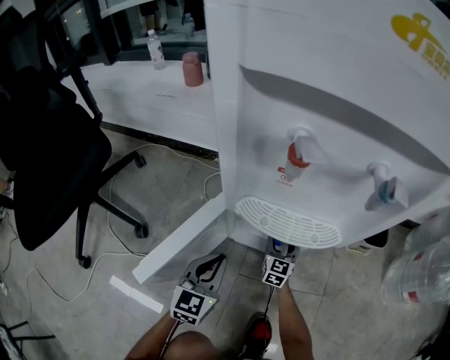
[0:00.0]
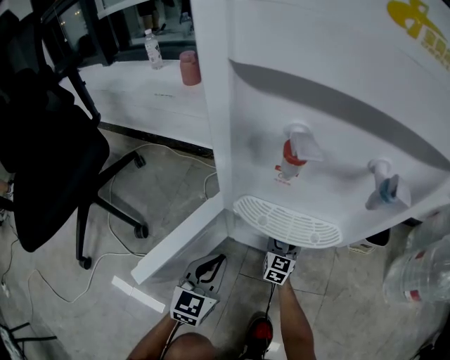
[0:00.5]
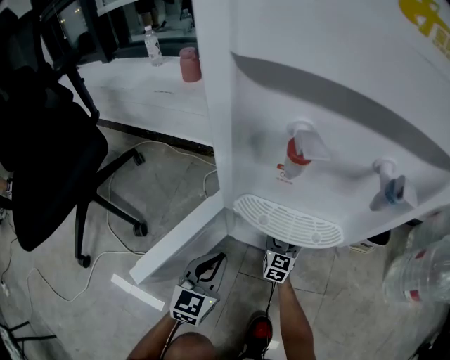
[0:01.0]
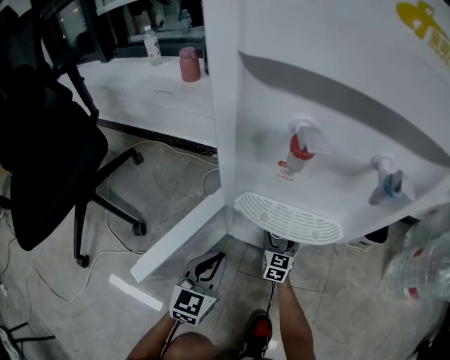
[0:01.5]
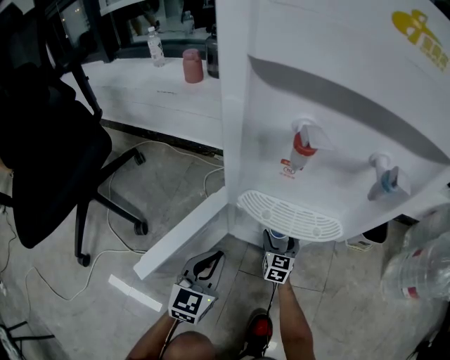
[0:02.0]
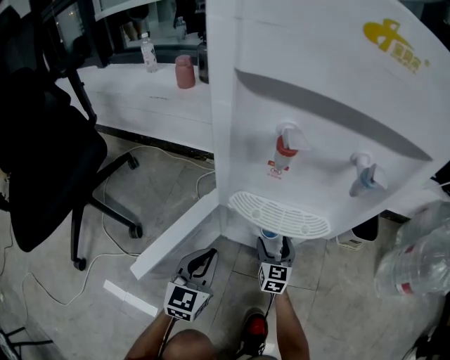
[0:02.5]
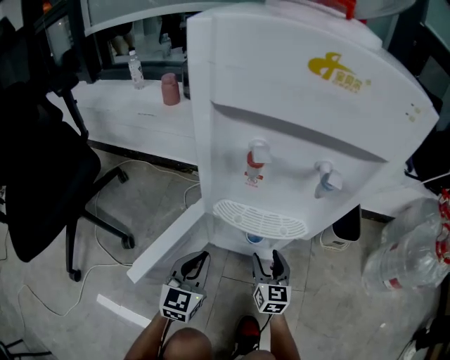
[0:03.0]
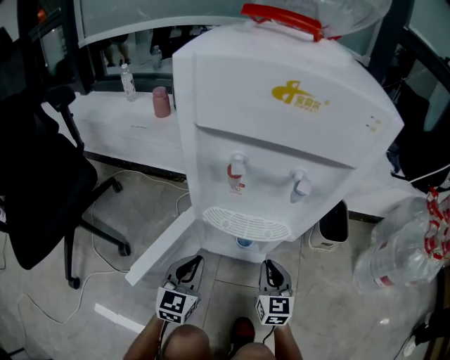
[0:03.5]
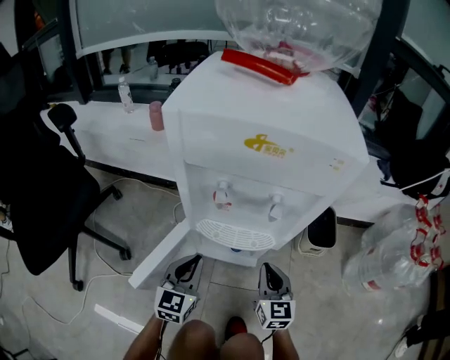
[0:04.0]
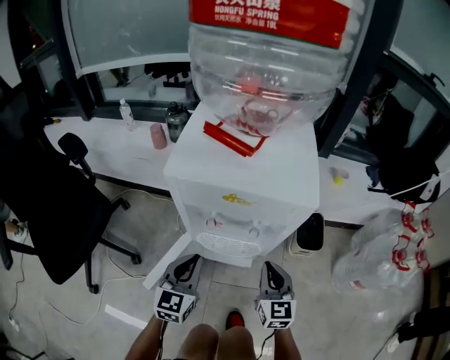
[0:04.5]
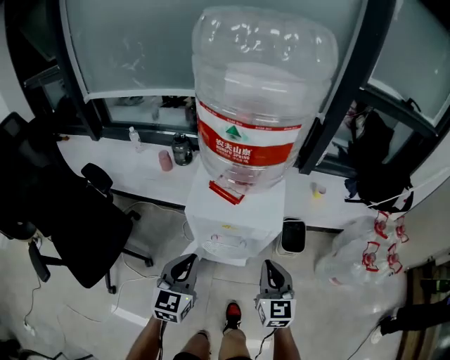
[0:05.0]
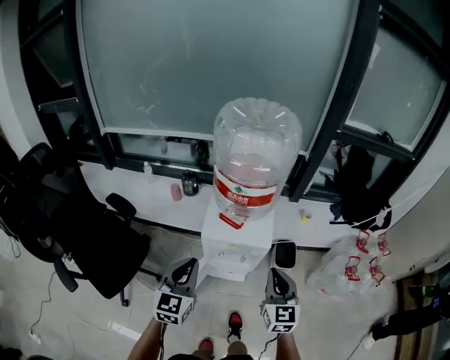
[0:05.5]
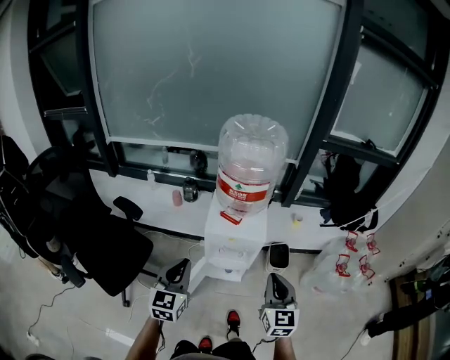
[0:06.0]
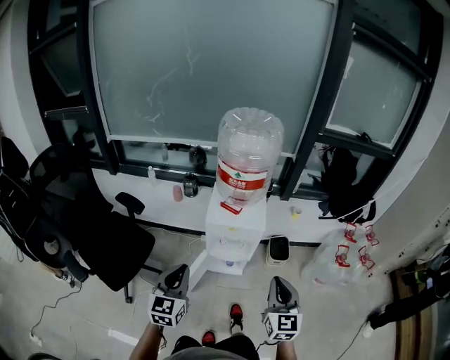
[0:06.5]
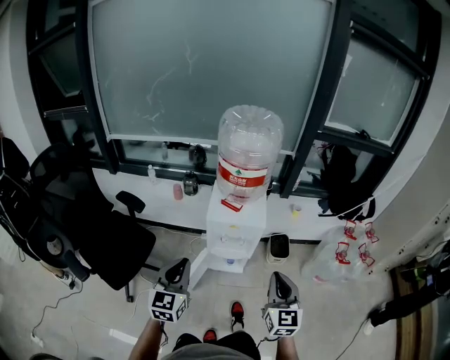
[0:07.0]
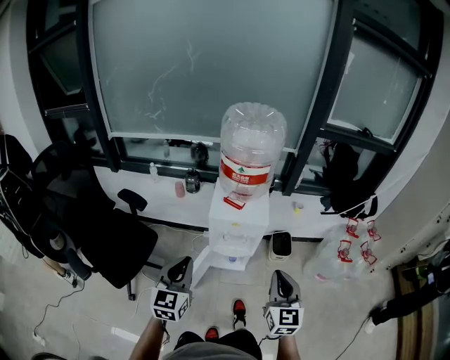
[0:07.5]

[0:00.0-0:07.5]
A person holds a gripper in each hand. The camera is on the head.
0:00.0 to 0:02.0: The grippers make only small movements.
0:02.0 to 0:04.0: The left gripper shifts roughly 15 cm upward. Meanwhile the right gripper shifts some 30 cm upward and backward, and closes up.
0:04.0 to 0:05.5: The grippers both shift upward by some 60 cm.
0:05.5 to 0:07.5: The left gripper moves backward, approximately 15 cm. Meanwhile the right gripper moves backward and upward, some 20 cm.

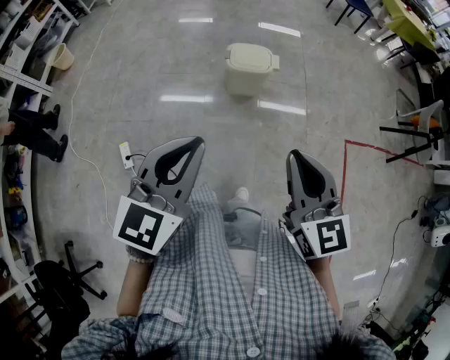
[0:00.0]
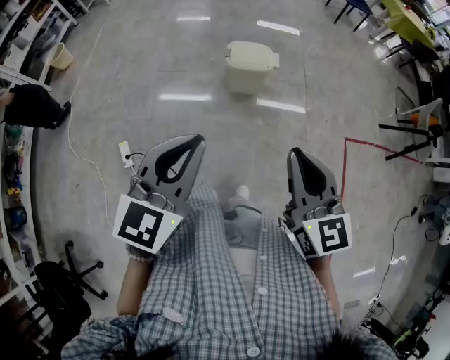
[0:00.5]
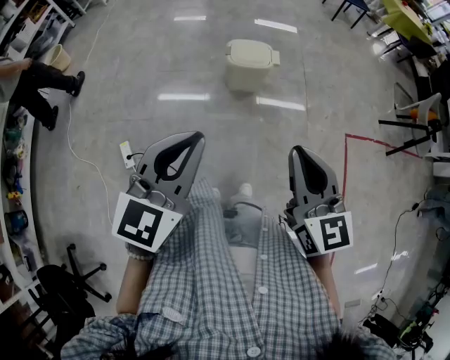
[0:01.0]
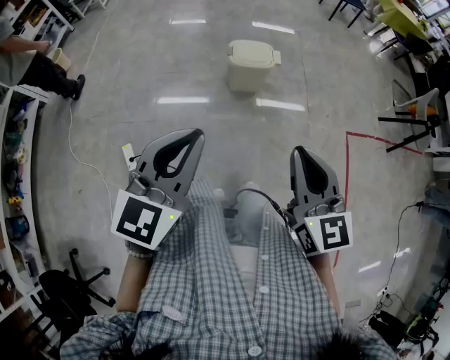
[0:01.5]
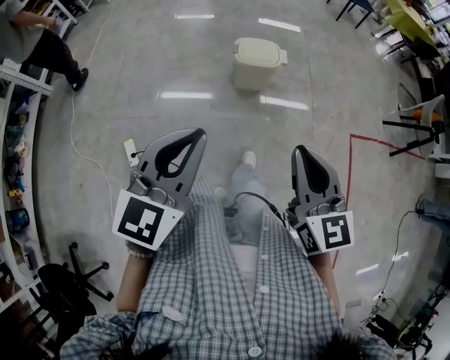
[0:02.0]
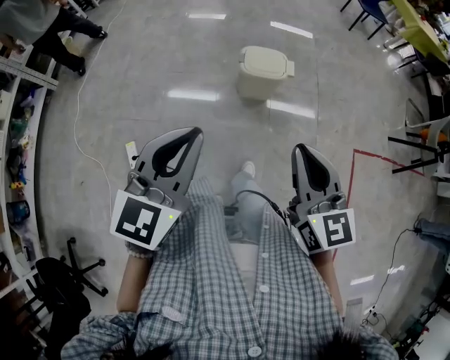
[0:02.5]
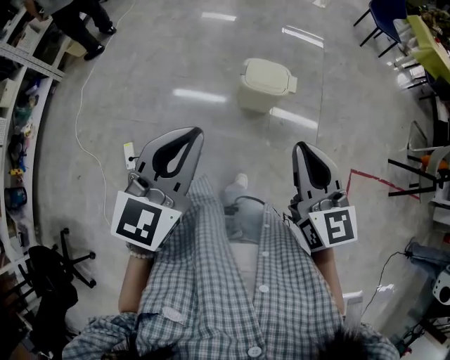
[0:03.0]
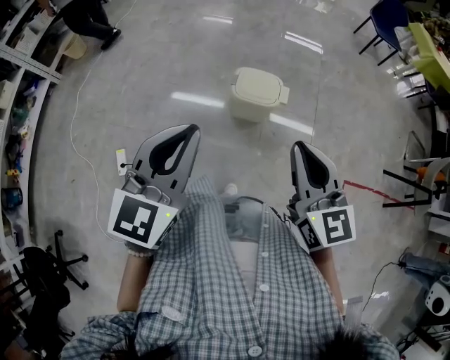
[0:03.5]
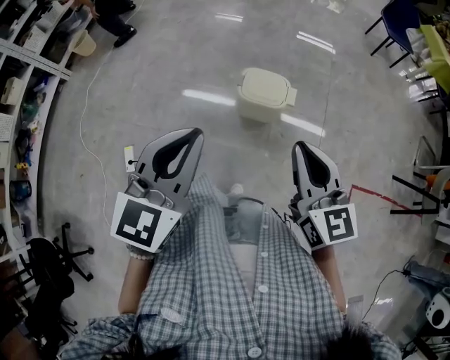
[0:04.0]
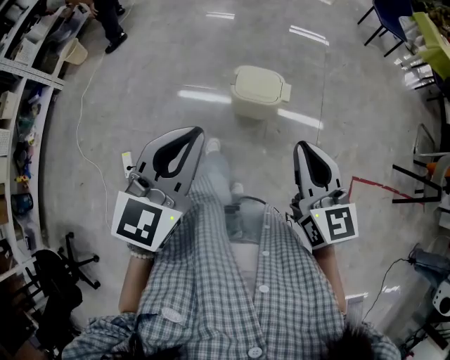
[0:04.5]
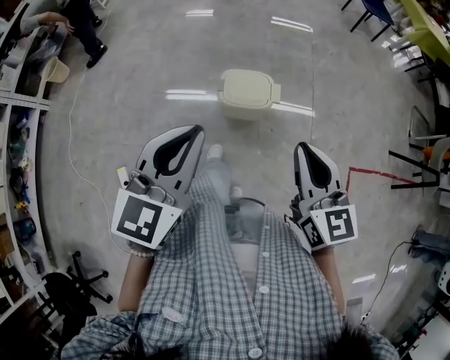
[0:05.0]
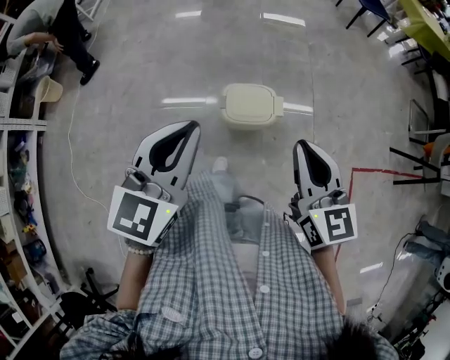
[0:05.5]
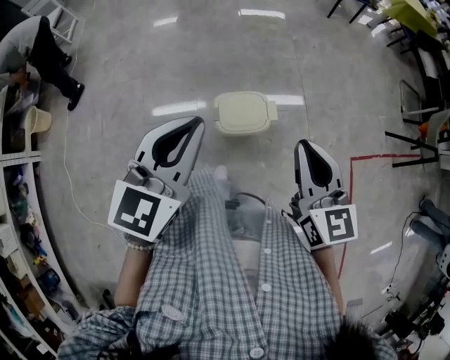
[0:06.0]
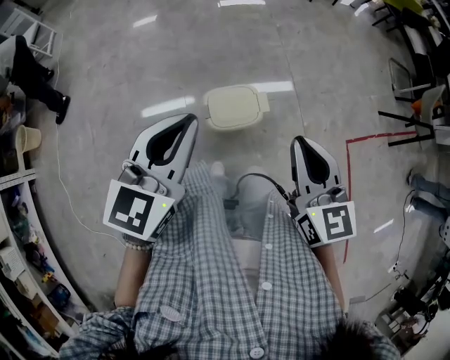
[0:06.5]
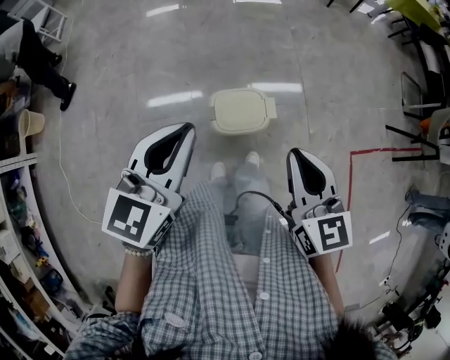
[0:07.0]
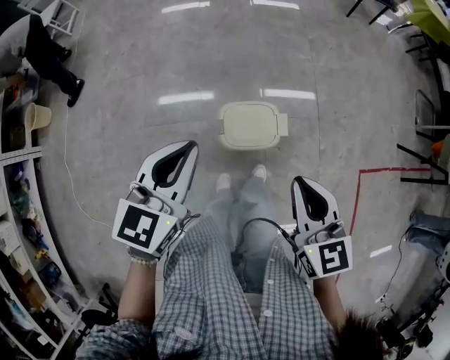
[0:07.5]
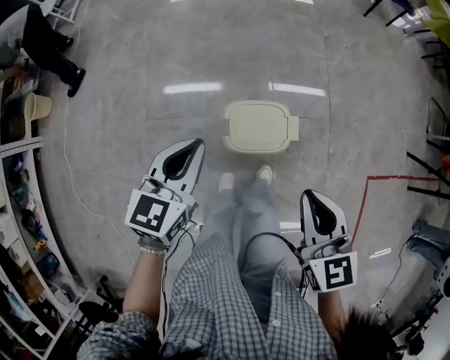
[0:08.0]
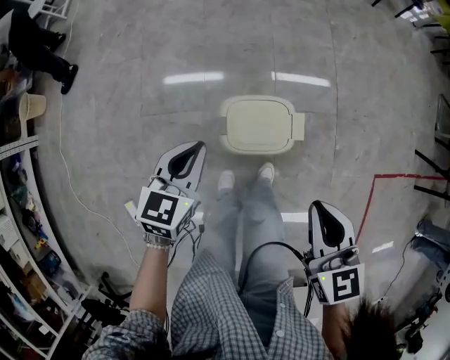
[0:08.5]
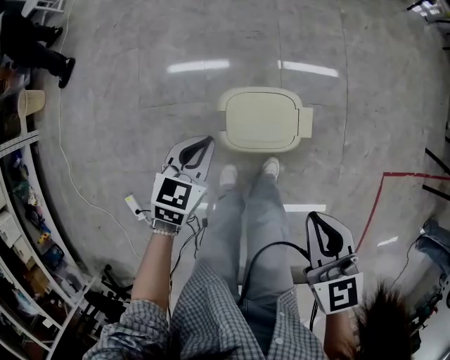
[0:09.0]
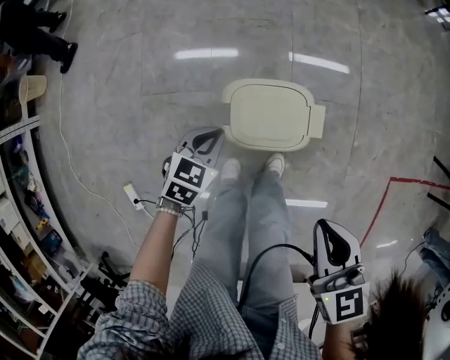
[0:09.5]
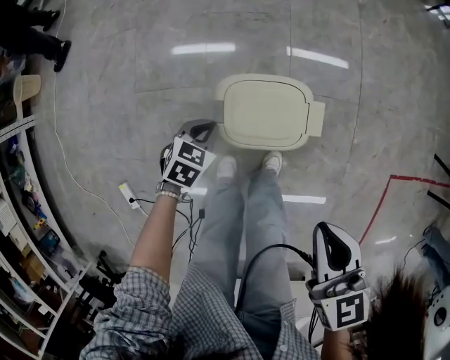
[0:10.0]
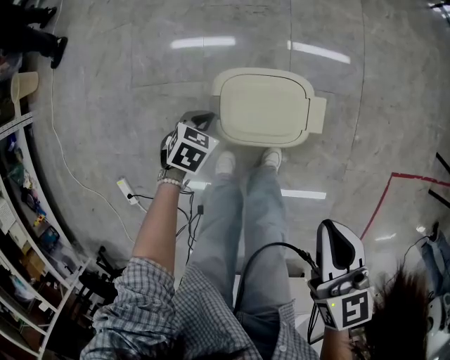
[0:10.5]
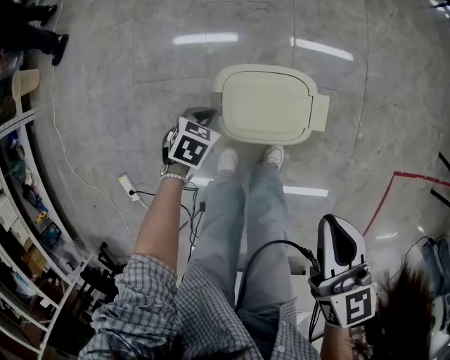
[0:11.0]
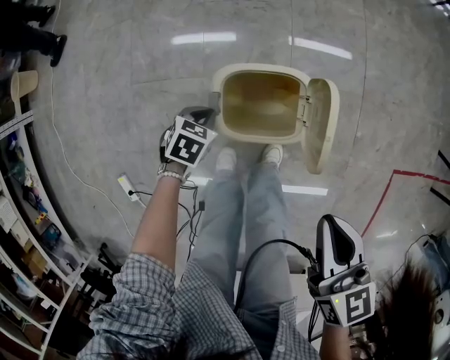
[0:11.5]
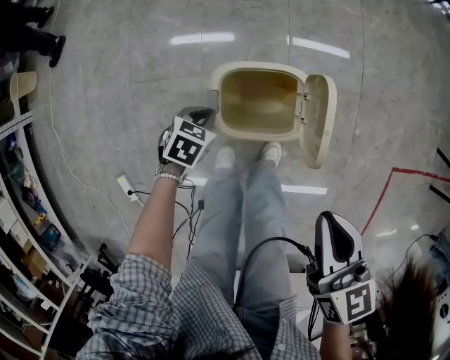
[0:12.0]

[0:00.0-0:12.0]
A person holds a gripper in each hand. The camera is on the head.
0:00.0 to 0:02.0: The left gripper goes roughly 5 cm to the left.
0:02.0 to 0:04.0: The two grippers go roughly 25 cm forward and to the right.
0:04.0 to 0:06.0: The grippers both shift forward by approximately 20 cm. The left gripper turns by some 20 degrees. The right gripper changes its angle by about 20 degrees.
0:06.0 to 0:08.0: The left gripper travels downward and forward by about 20 cm, while the right gripper moves downward and forward, roughly 15 cm.
0:08.0 to 0:10.0: The right gripper heads downward, covering approximately 15 cm, while the left gripper moves downward, roughly 35 cm, and tips its fingers downward by roughly 30 degrees.
0:10.0 to 0:12.0: There are only small adjustments of the grippers.

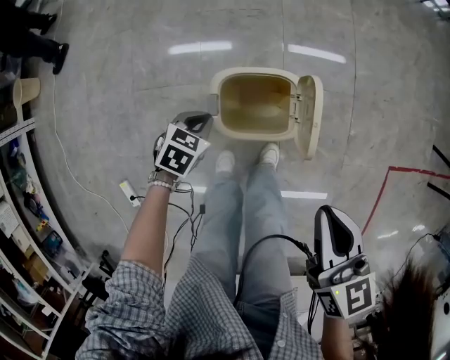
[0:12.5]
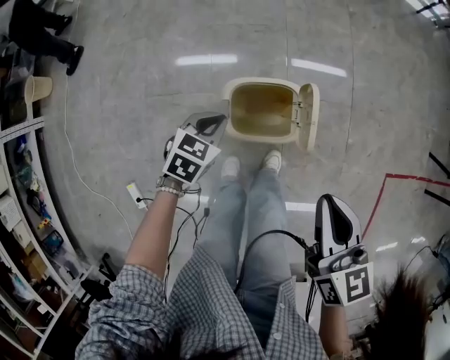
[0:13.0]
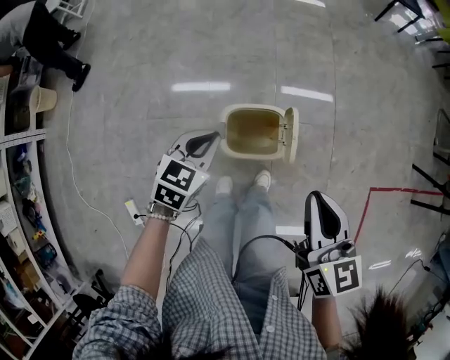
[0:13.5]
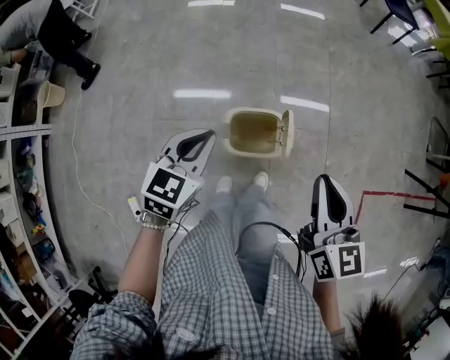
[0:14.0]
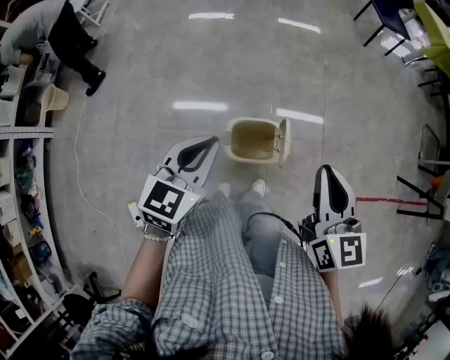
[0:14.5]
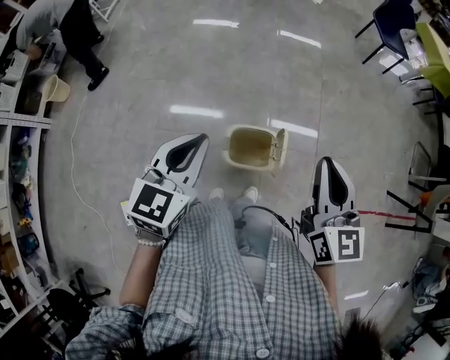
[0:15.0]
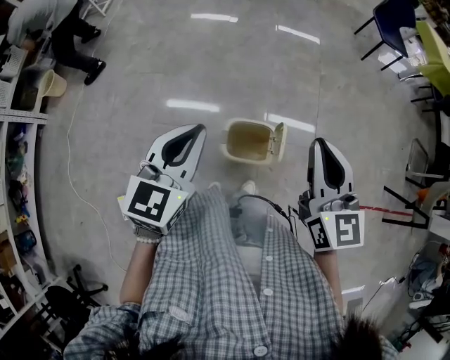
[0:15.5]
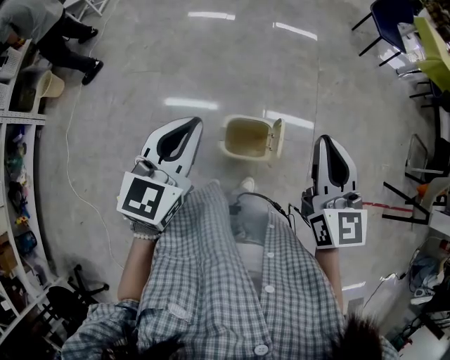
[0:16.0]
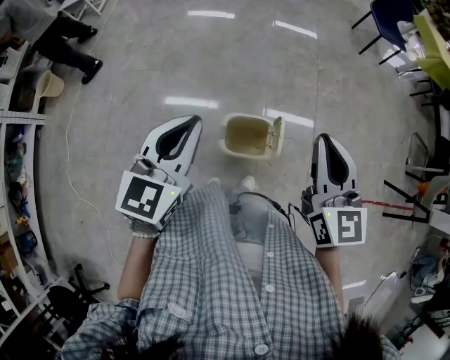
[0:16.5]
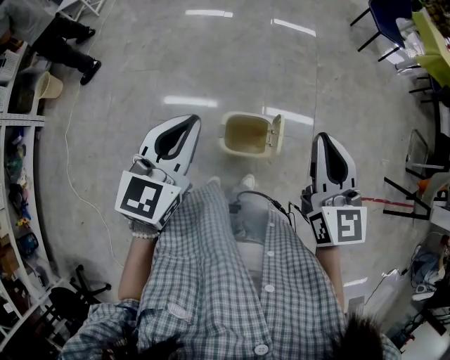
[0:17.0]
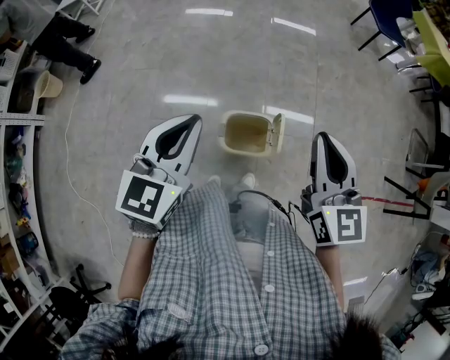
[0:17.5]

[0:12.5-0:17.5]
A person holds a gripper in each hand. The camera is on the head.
0:12.5 to 0:15.0: The right gripper moves upward, roughly 25 cm, and turns by roughly 30 degrees, while the left gripper travels upward by approximately 50 cm, and points its fingers some 40 degrees further upward.
0:15.0 to 0:17.5: The grippers move only a little.

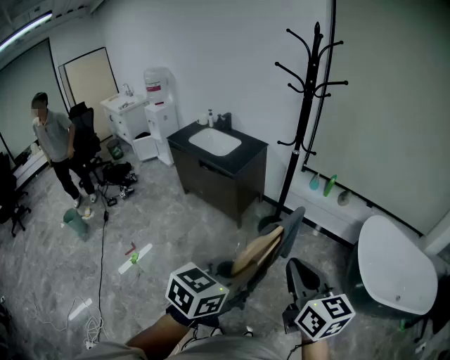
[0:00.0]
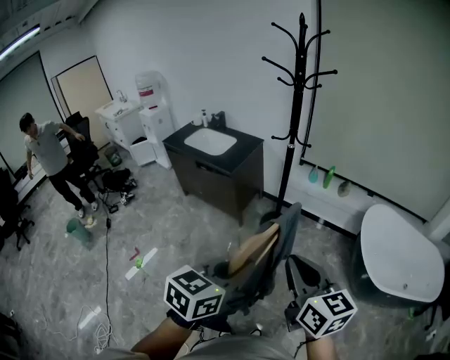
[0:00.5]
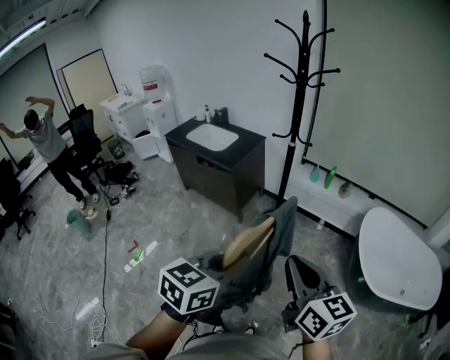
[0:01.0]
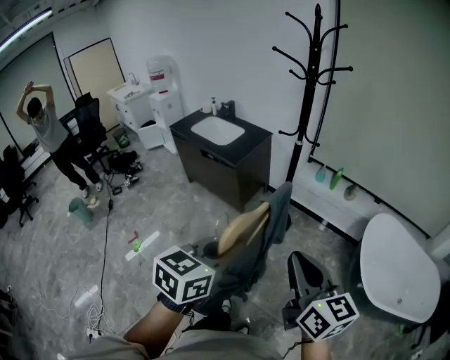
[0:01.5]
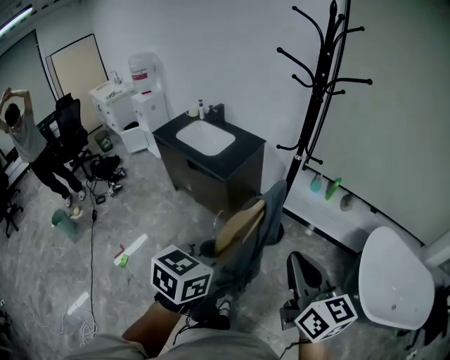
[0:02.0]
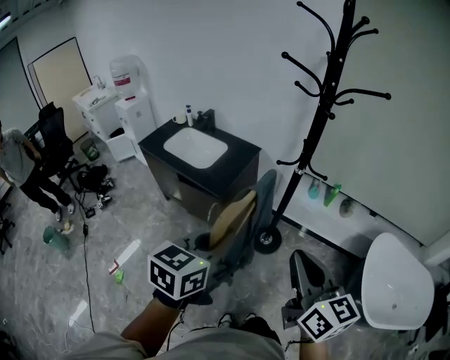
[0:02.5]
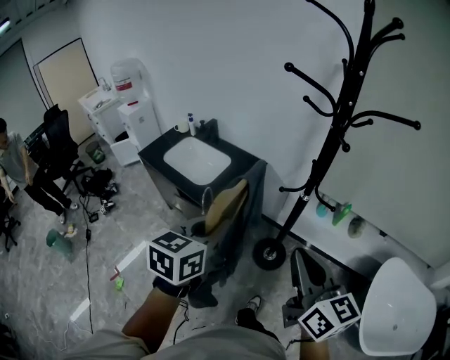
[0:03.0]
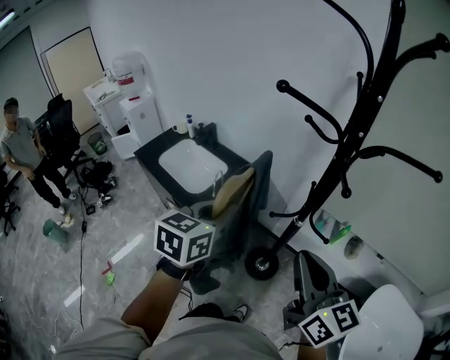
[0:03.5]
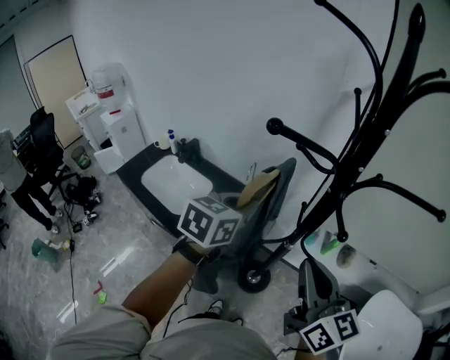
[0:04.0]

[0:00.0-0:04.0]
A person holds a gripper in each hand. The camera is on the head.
0:00.0 to 0:02.0: The two grippers go about 20 cm forward.
0:02.0 to 0:04.0: The pair of grippers is taken forward, approximately 50 cm.
